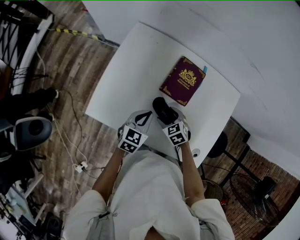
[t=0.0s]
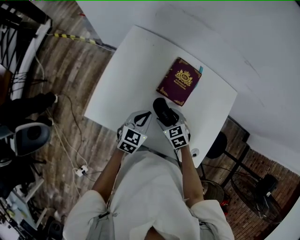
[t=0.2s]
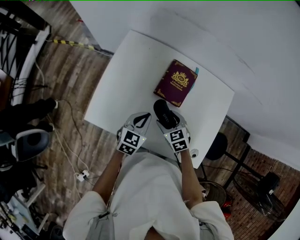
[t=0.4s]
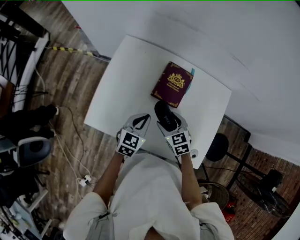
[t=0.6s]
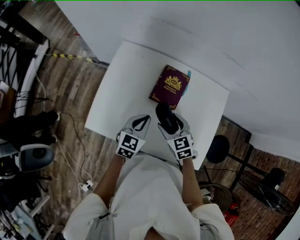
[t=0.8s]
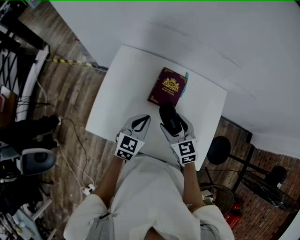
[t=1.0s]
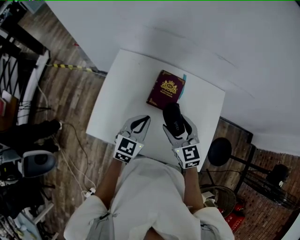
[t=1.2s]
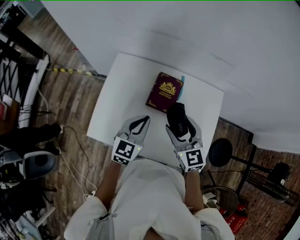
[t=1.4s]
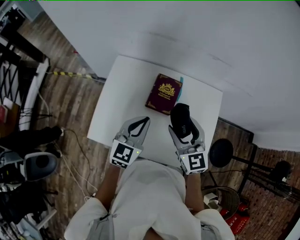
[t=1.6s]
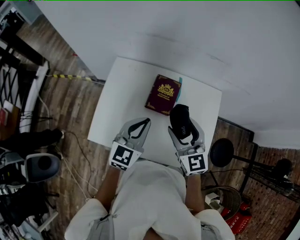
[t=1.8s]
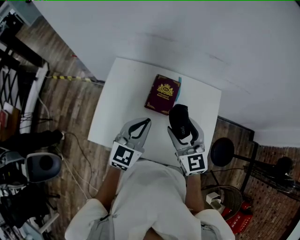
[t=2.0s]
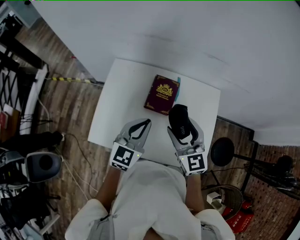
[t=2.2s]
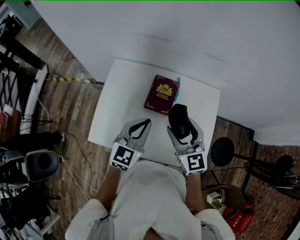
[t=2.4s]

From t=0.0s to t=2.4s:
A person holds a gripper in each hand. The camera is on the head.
From t=0.0s to t=1.2s: The right gripper goes roughly 20 cm upward, and points its fingers approximately 30 degrees further upward, while the left gripper shifts roughly 10 cm upward.
From t=1.2s to t=2.4s: Both grippers travel together upward, about 10 cm.

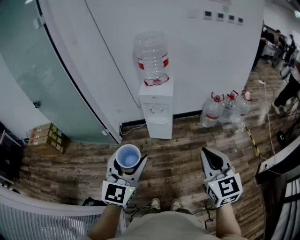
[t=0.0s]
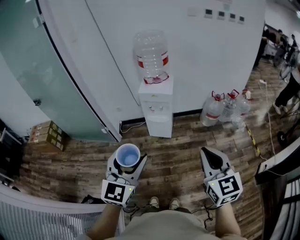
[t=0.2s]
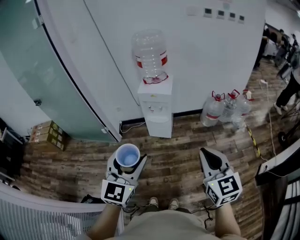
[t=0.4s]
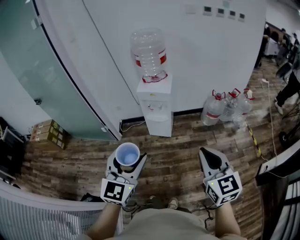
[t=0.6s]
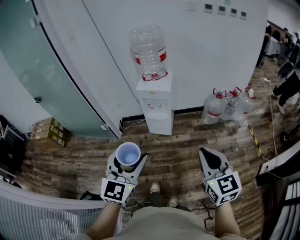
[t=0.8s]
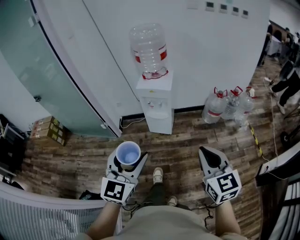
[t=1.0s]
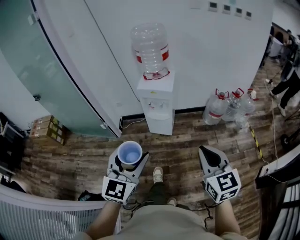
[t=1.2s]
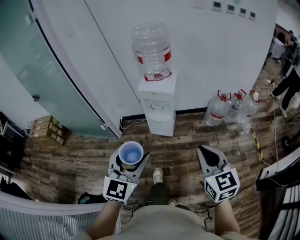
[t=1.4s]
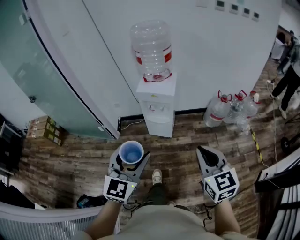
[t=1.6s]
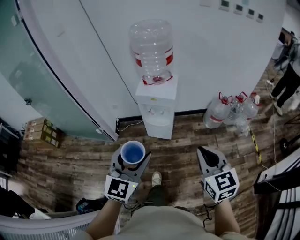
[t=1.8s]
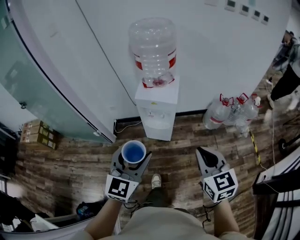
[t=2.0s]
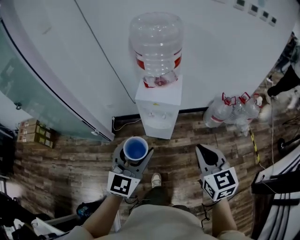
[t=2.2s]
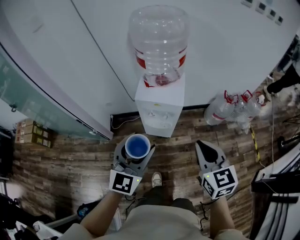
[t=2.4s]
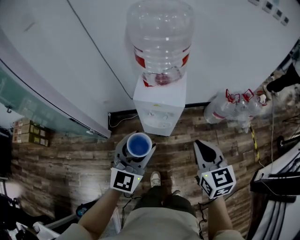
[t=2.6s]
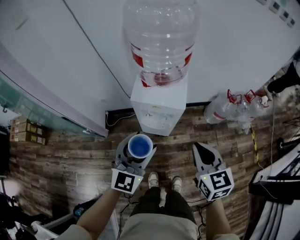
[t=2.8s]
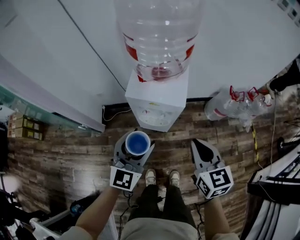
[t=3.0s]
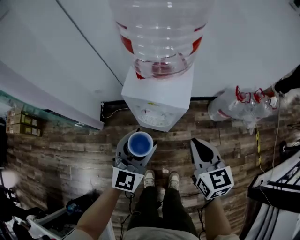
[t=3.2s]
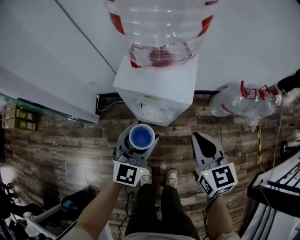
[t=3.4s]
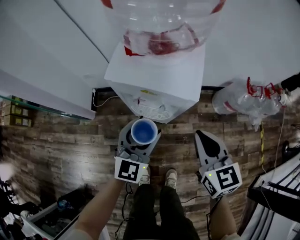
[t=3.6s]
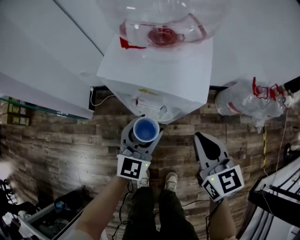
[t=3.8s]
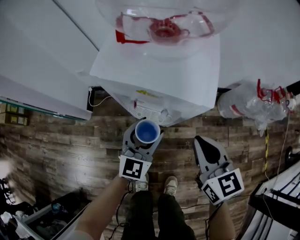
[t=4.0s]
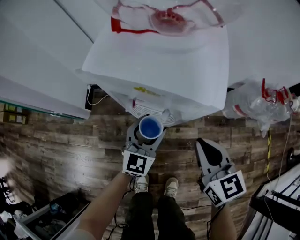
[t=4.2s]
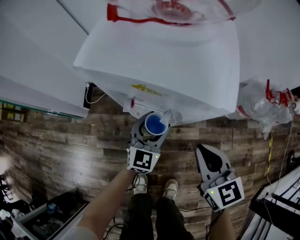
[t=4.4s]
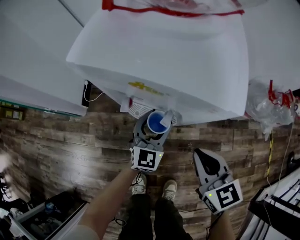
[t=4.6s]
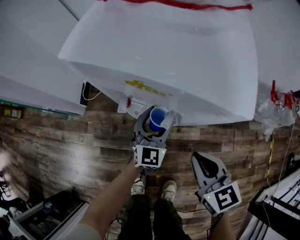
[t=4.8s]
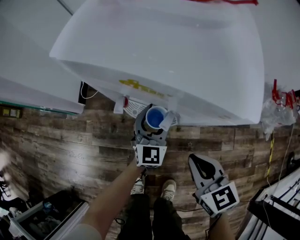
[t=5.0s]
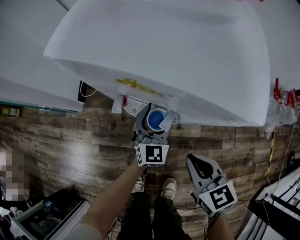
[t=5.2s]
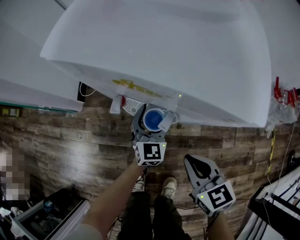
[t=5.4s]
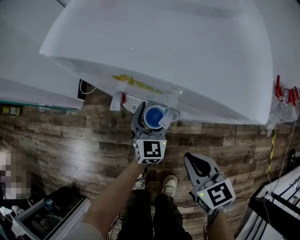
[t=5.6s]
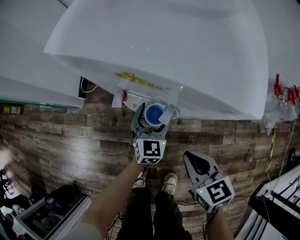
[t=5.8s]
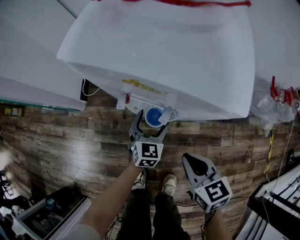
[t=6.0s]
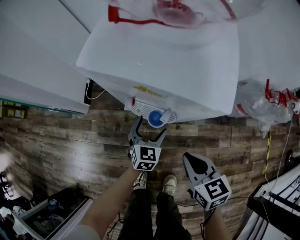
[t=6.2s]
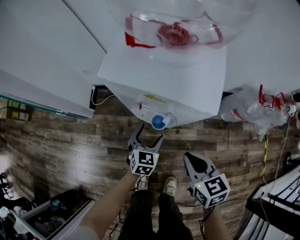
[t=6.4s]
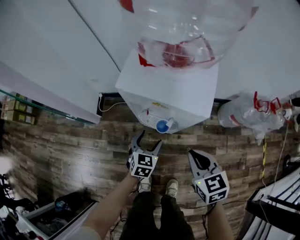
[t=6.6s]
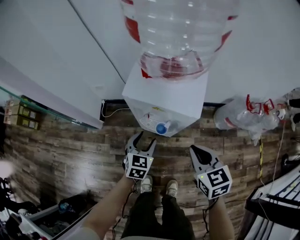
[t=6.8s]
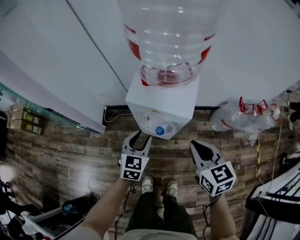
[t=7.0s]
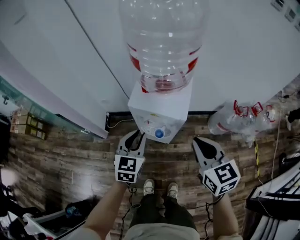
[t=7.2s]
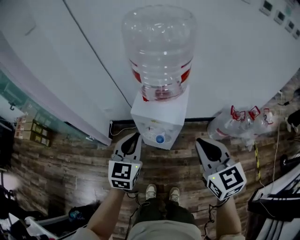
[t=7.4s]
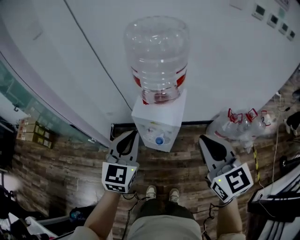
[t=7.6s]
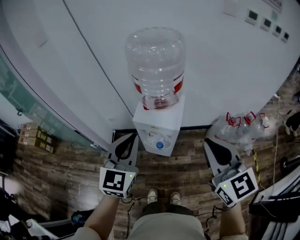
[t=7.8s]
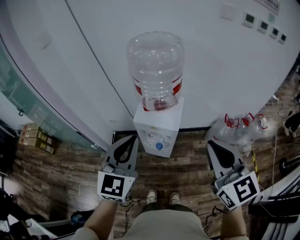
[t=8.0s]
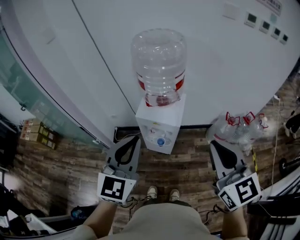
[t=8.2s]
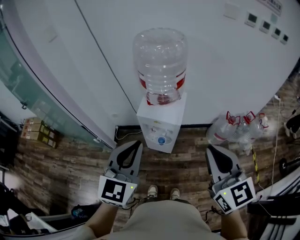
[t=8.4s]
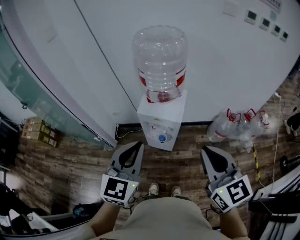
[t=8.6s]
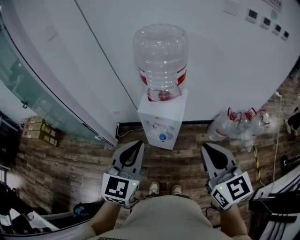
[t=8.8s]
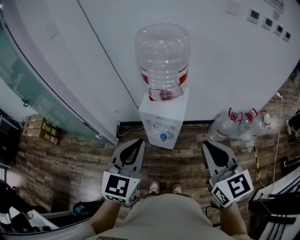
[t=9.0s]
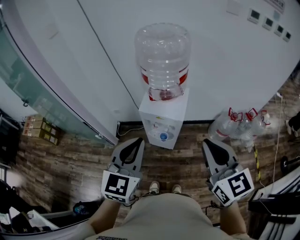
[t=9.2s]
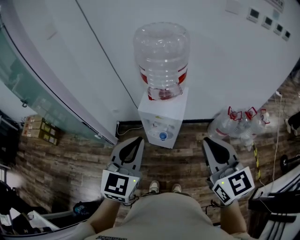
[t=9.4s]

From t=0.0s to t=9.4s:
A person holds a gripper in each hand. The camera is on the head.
From t=0.0s to t=1.6s: The two grippers go about 15 cm forward and downward.
From t=1.6s to t=3.2s: Both grippers travel together forward and downward, approximately 40 cm.
From t=3.2s to t=4.8s: The grippers both shift downward by about 35 cm.
From t=4.8s to t=6.2s: The left gripper ends up approximately 5 cm from where it was, and changes its angle by about 20 degrees.
From t=6.2s to t=7.8s: The grippers both shift upward by about 60 cm. The right gripper angles its fingers upward, by some 30 degrees, while the left gripper rotates about 30 degrees, and closes up.
From t=7.8s to t=9.4s: The left gripper shifts approximately 5 cm backward.

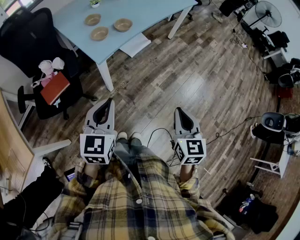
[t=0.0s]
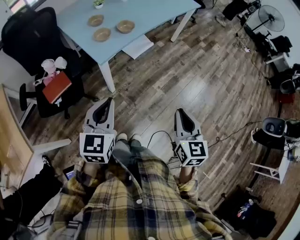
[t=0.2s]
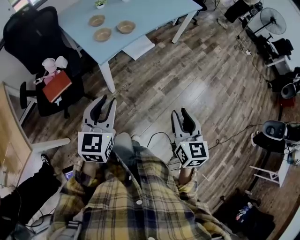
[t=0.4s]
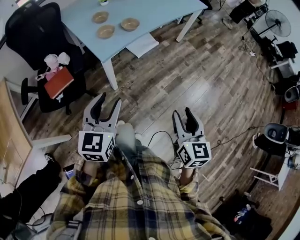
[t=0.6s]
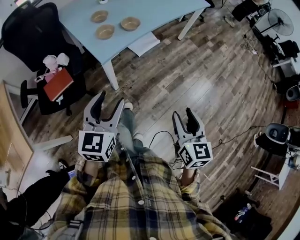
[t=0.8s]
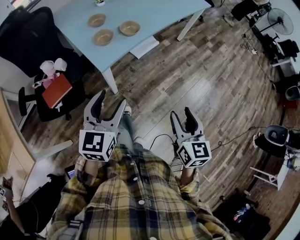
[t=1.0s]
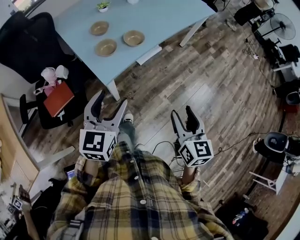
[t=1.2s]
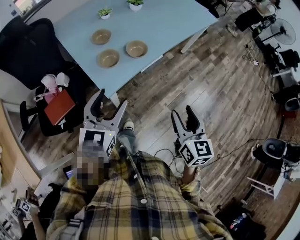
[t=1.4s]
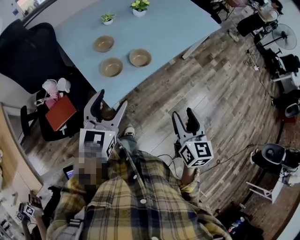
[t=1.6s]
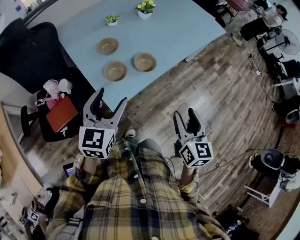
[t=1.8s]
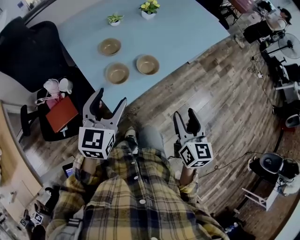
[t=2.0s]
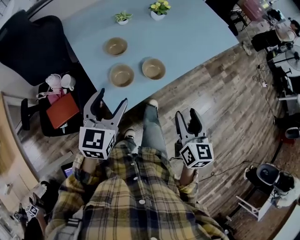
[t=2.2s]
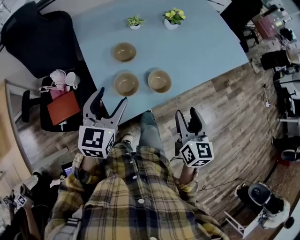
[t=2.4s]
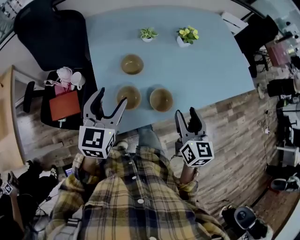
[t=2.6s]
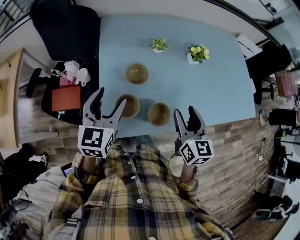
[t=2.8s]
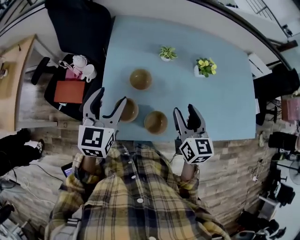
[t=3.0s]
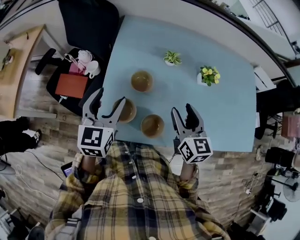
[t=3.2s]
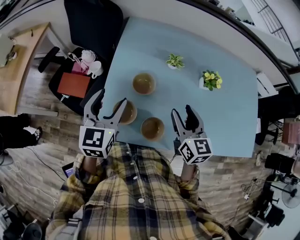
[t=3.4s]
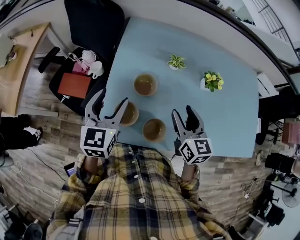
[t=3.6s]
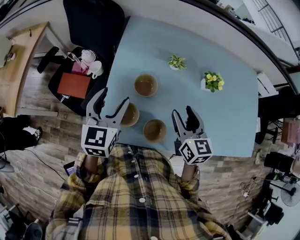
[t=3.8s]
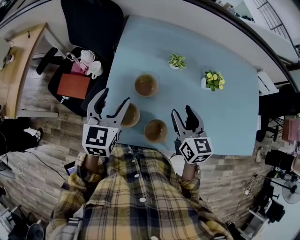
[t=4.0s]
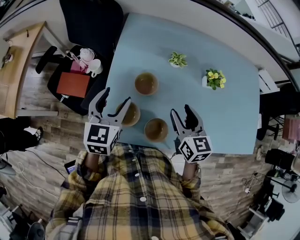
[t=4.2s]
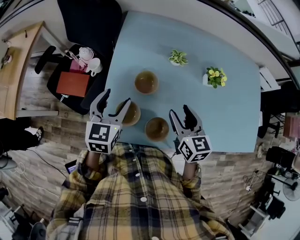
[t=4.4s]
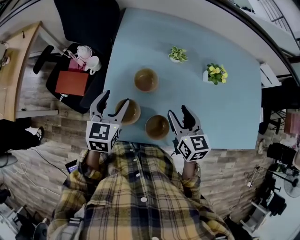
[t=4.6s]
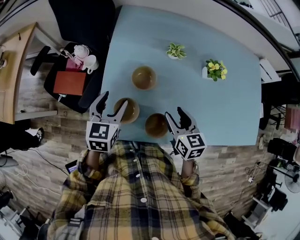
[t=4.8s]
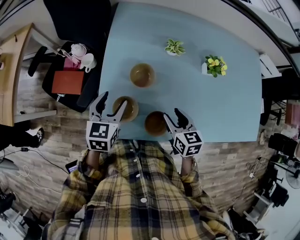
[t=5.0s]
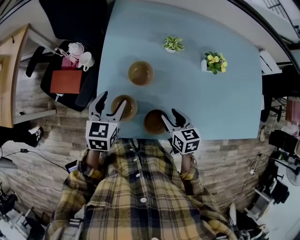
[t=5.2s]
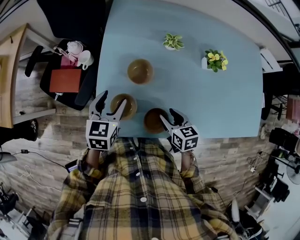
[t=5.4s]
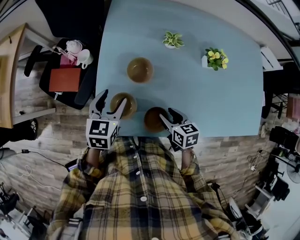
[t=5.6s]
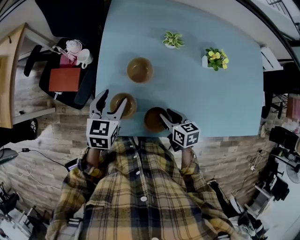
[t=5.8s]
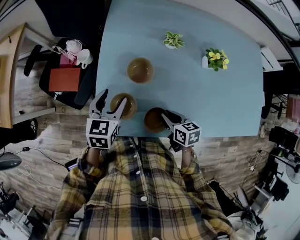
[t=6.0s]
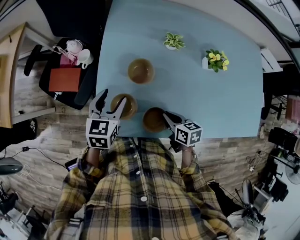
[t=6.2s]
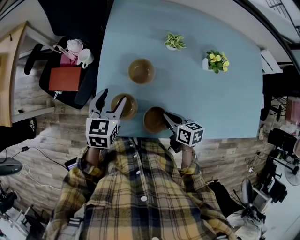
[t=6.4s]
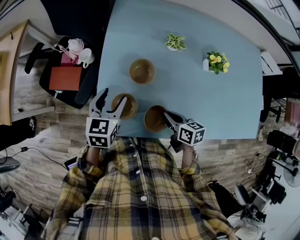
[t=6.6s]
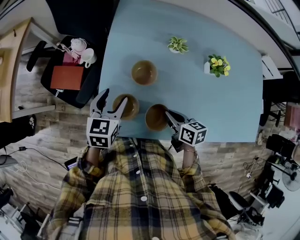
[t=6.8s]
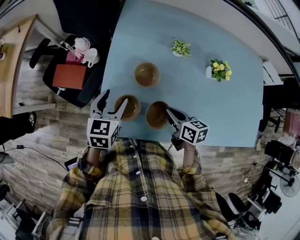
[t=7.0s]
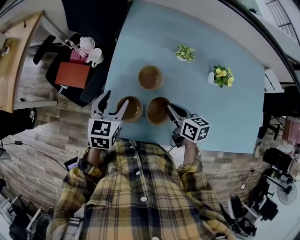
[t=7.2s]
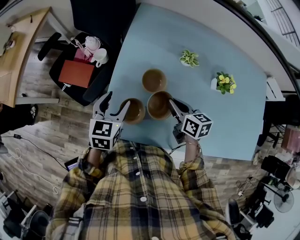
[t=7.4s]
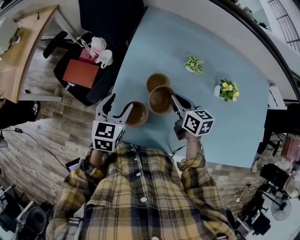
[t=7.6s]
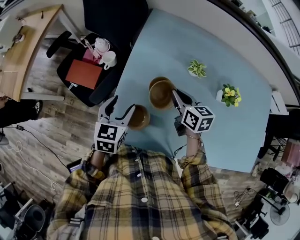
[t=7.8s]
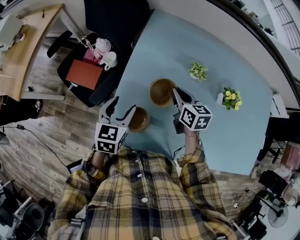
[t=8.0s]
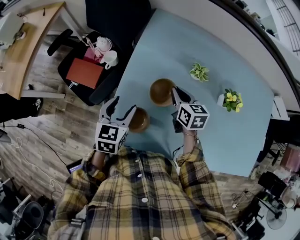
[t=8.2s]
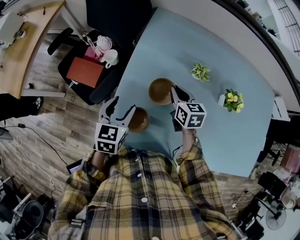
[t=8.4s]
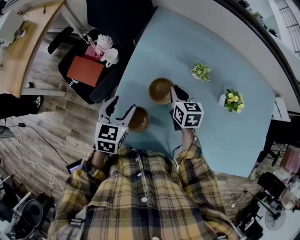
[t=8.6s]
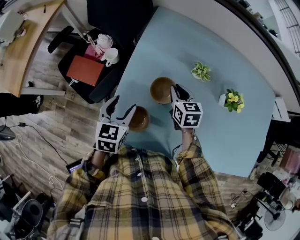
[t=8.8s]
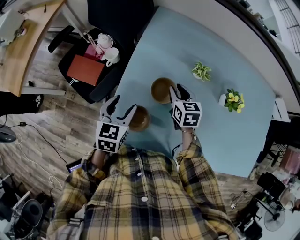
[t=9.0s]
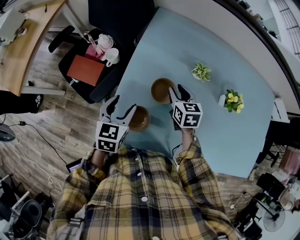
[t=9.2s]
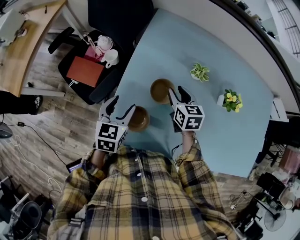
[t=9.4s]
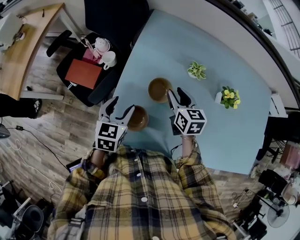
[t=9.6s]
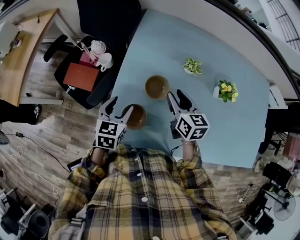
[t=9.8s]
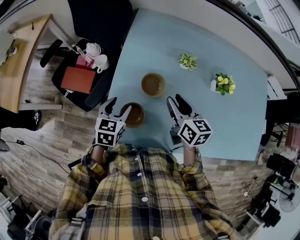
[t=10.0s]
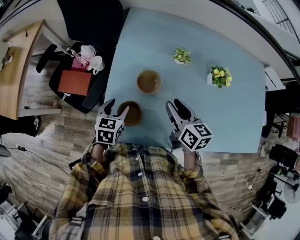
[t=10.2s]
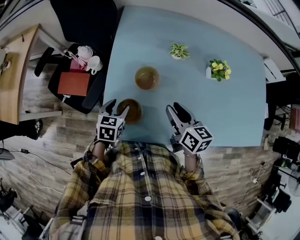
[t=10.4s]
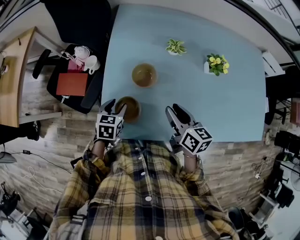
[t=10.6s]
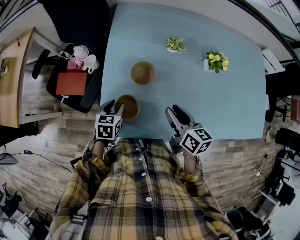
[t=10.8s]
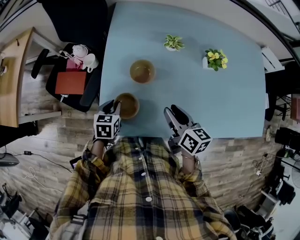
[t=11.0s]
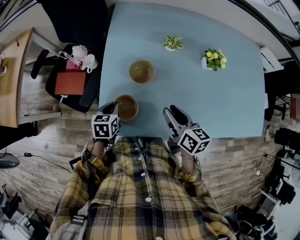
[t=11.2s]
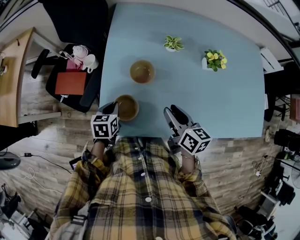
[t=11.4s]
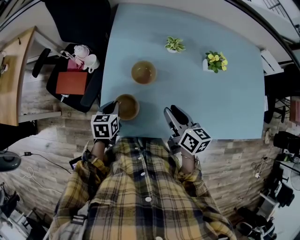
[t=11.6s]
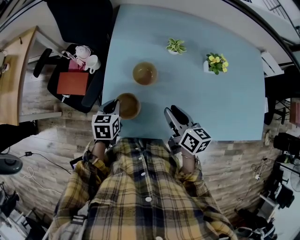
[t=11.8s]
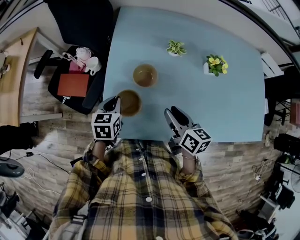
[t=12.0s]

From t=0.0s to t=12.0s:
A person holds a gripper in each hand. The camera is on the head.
From t=0.0s to t=1.6s: The grippers both shift forward by about 25 cm. The right gripper opens up. Meanwhile the left gripper opens.
From t=1.6s to t=3.0s: The left gripper changes place by approximately 20 cm, and turns by approximately 40 degrees. The right gripper shifts by approximately 40 cm, and swivels roughly 40 degrees.
From t=3.0s to t=4.4s: The left gripper shifts approximately 5 cm downward. The right gripper shifts by roughly 5 cm.
From t=4.4s to t=6.0s: The right gripper is displaced downward and backward by about 15 cm, changes its angle by approximately 30 degrees, and closes its fingers; the left gripper shifts some 10 cm downward.
From t=6.0s to t=7.6s: The right gripper shifts roughly 20 cm forward and upward.
From t=7.6s to t=9.0s: The right gripper shifts about 5 cm forward.
From t=9.0s to t=10.4s: The right gripper shifts roughly 15 cm backward and upward, and changes its angle by about 30 degrees. Meanwhile the left gripper heads downward, covering some 10 cm.
From t=10.4s to t=12.0s: The left gripper closes its fingers.
